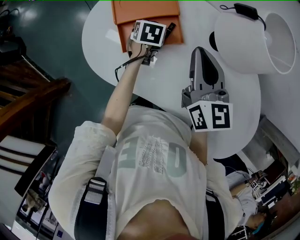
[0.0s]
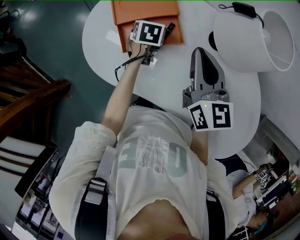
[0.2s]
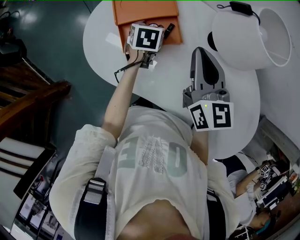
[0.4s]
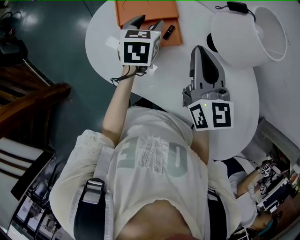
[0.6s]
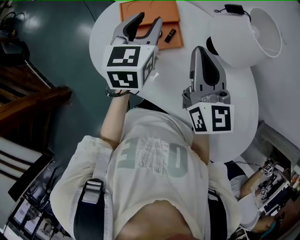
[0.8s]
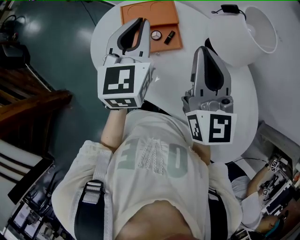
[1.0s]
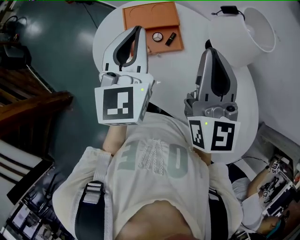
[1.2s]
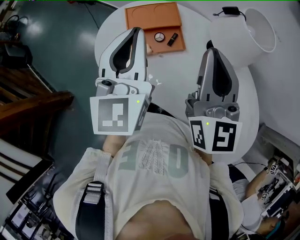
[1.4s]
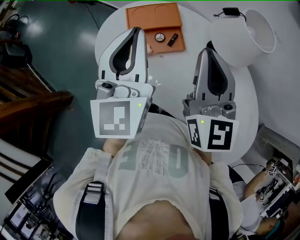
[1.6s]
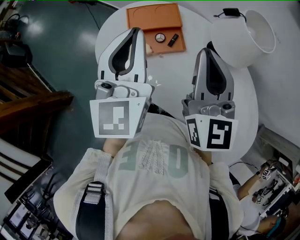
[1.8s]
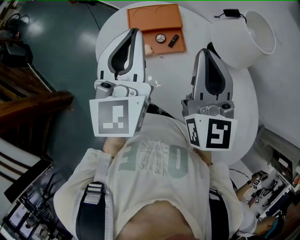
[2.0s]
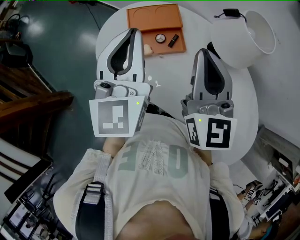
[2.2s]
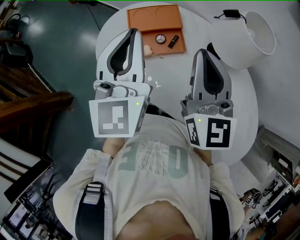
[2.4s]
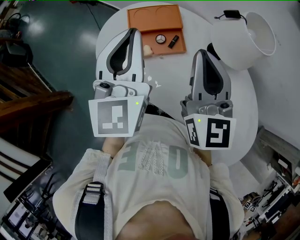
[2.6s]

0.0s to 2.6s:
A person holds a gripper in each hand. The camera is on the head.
0.0s to 1.2s: The right gripper heads upward and backward, covering approximately 15 cm. The left gripper is displaced upward by roughly 35 cm, points its fingers approximately 50 degrees further upward, and closes.
1.2s to 2.6s: The grippers move only a little.

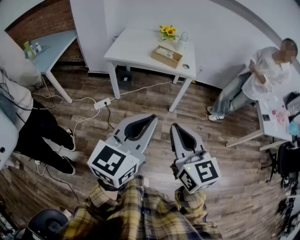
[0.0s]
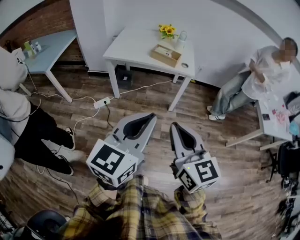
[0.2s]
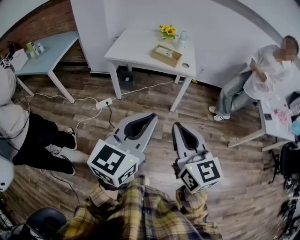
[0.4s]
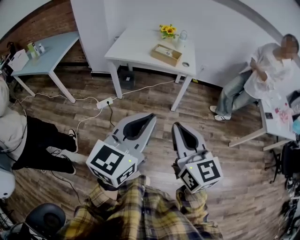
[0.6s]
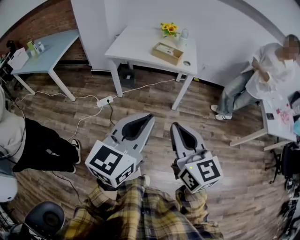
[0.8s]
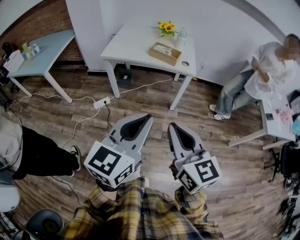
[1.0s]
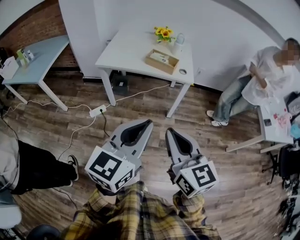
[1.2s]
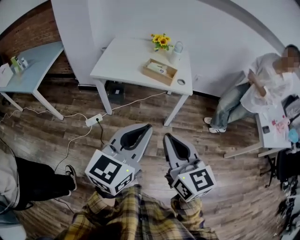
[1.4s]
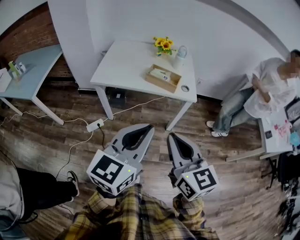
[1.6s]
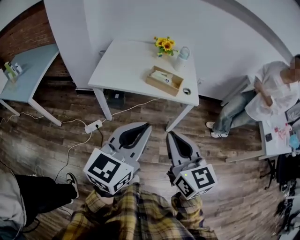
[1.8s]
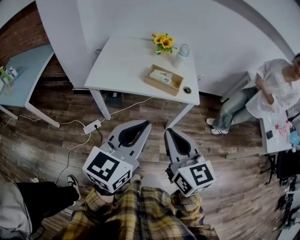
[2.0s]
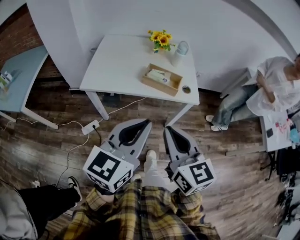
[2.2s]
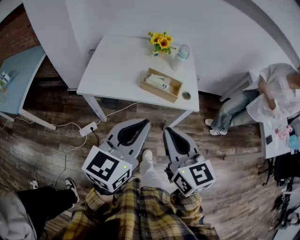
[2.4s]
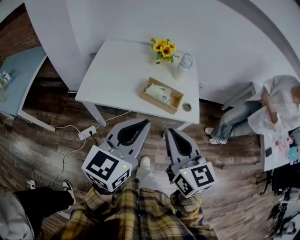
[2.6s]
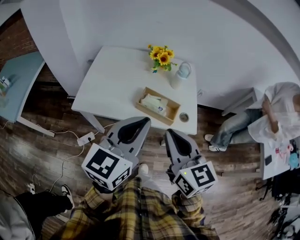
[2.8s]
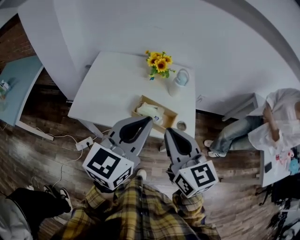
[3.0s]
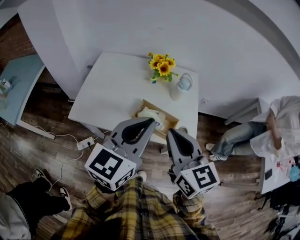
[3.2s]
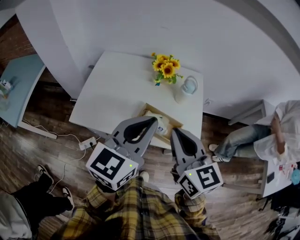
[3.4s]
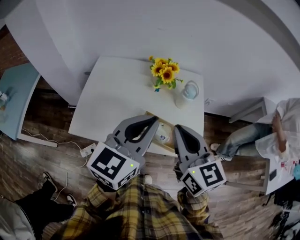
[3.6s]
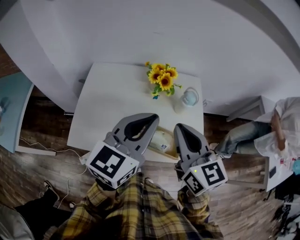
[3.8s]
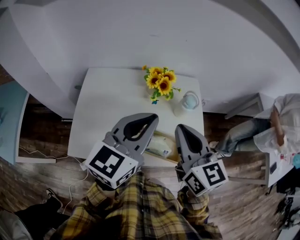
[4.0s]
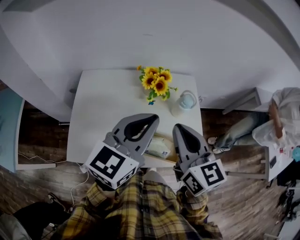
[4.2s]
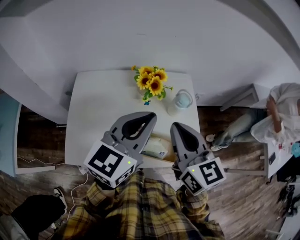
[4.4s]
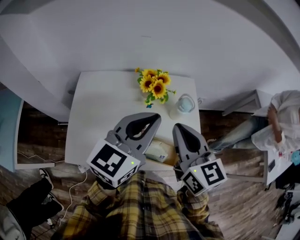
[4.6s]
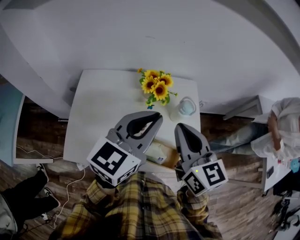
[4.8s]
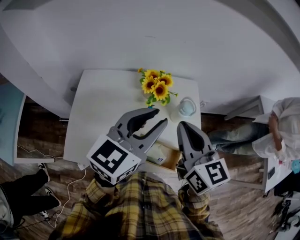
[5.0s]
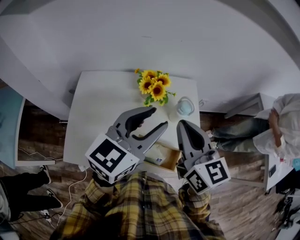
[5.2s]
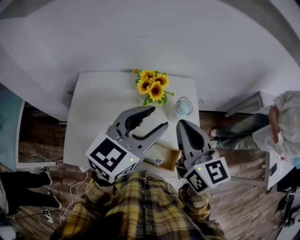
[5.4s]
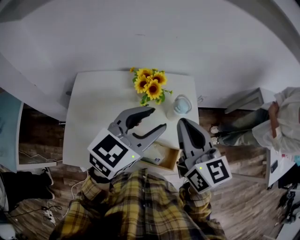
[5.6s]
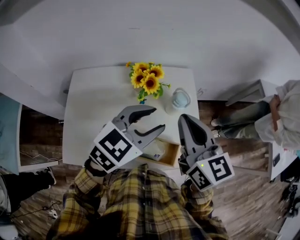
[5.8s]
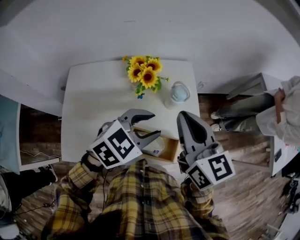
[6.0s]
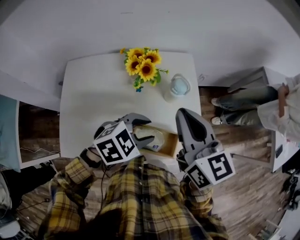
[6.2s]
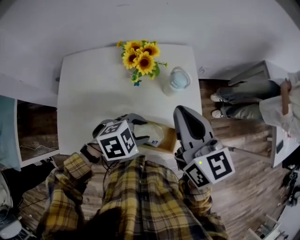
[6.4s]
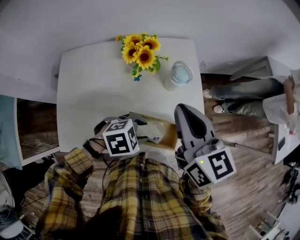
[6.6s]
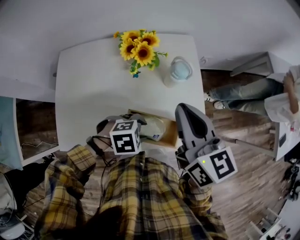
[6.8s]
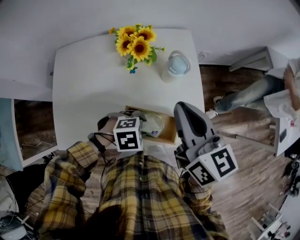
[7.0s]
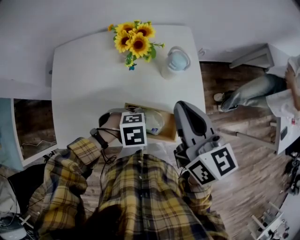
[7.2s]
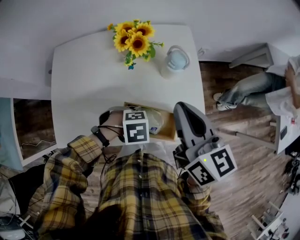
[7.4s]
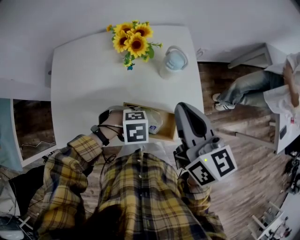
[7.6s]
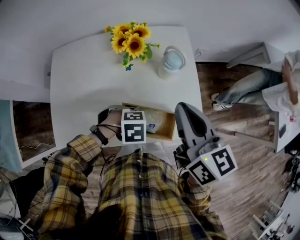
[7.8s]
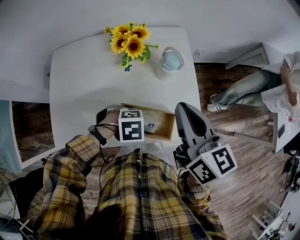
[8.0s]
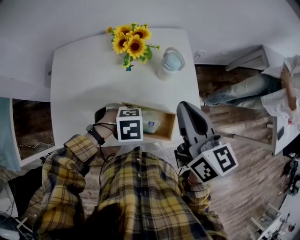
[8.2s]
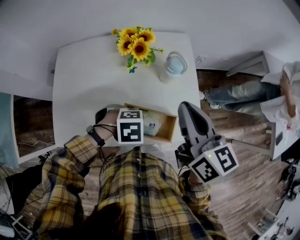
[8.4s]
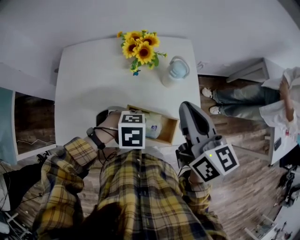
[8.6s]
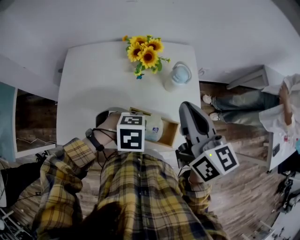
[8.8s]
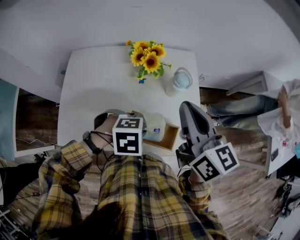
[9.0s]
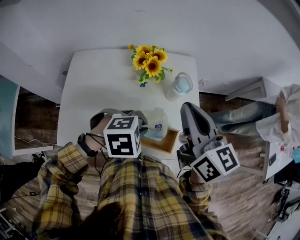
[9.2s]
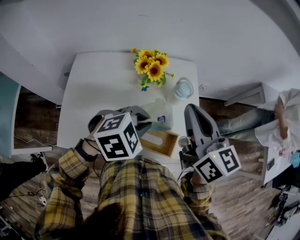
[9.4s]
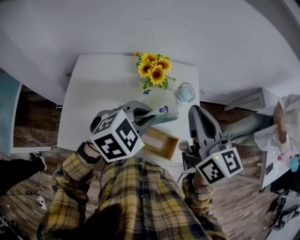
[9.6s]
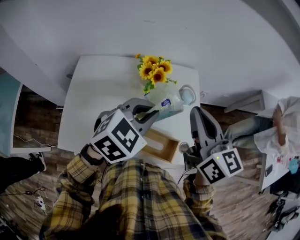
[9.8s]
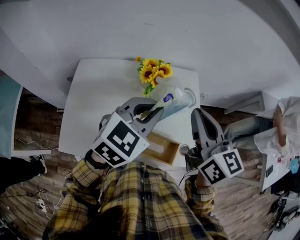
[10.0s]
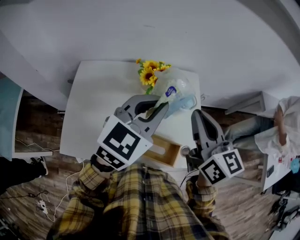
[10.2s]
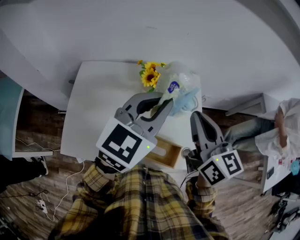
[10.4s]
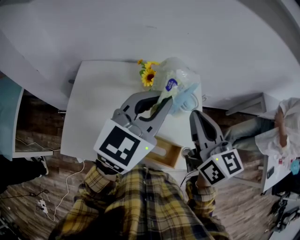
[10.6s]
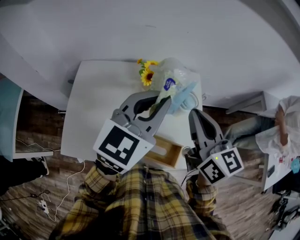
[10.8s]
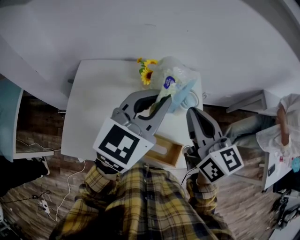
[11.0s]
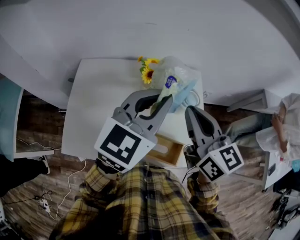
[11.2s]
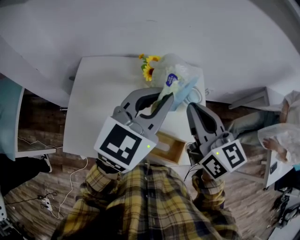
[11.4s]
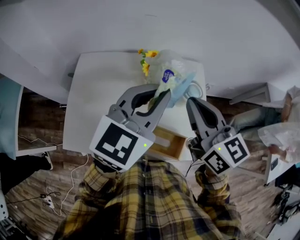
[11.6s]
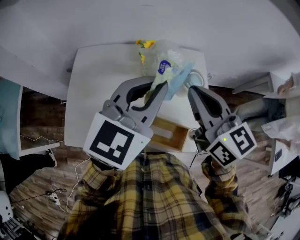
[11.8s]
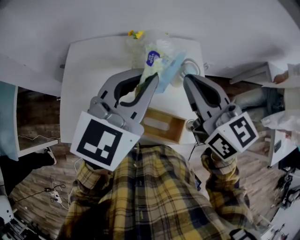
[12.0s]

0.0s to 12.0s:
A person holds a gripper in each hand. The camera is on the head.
0.0s to 1.6s: The two grippers go about 20 cm forward.
1.6s to 3.0s: The two grippers go about 30 cm forward.
3.0s to 4.4s: Both grippers move forward, roughly 20 cm.
4.4s to 6.0s: The right gripper moves forward and to the right, about 5 cm. Meanwhile the left gripper heads downward and to the right, covering approximately 15 cm, tips its fingers downward by approximately 30 degrees, and opens its fingers.
6.0s to 7.6s: The right gripper goes some 5 cm downward, while the left gripper travels downward by approximately 20 cm, and tilts its fingers roughly 40 degrees downward.
7.6s to 9.0s: The right gripper moves upward, some 5 cm, while the left gripper moves upward, some 10 cm, and closes its fingers.
9.0s to 10.4s: The left gripper shifts approximately 25 cm upward, and tilts its fingers approximately 60 degrees upward.
10.4s to 12.0s: The grippers make only small movements.

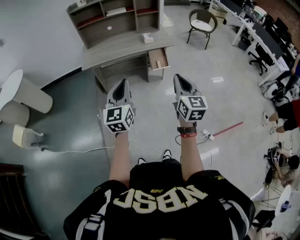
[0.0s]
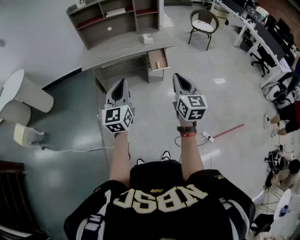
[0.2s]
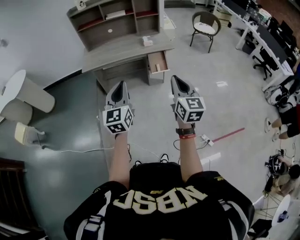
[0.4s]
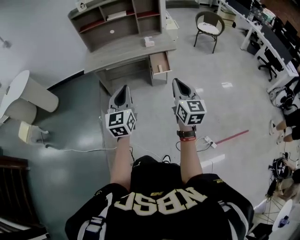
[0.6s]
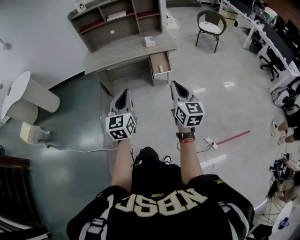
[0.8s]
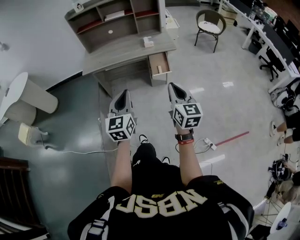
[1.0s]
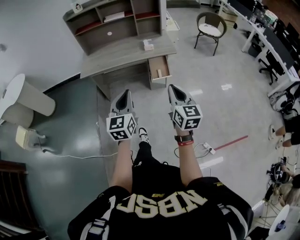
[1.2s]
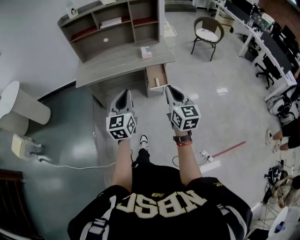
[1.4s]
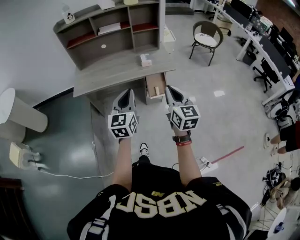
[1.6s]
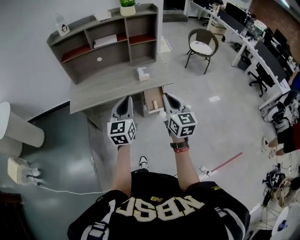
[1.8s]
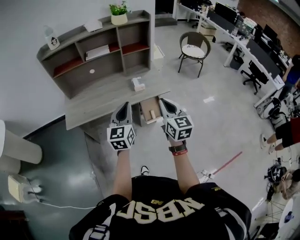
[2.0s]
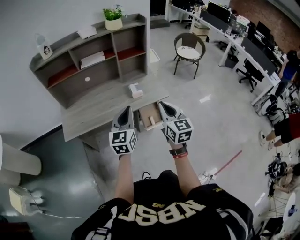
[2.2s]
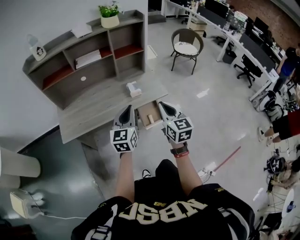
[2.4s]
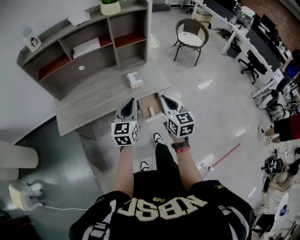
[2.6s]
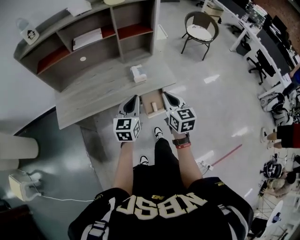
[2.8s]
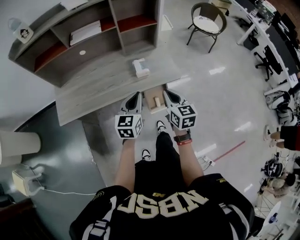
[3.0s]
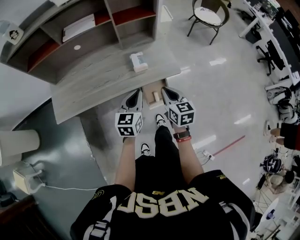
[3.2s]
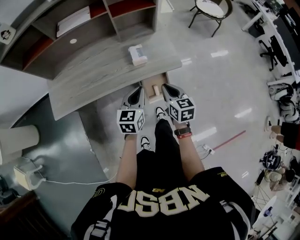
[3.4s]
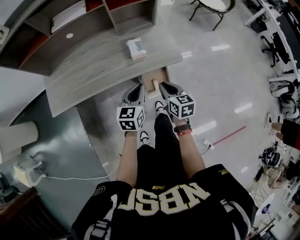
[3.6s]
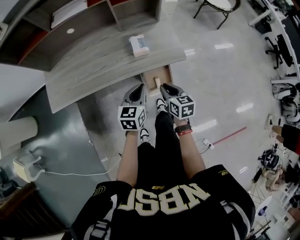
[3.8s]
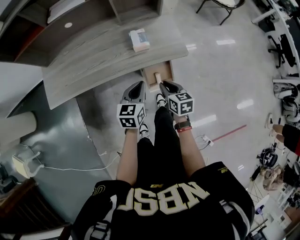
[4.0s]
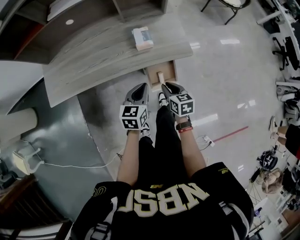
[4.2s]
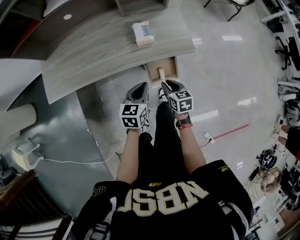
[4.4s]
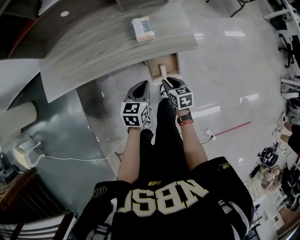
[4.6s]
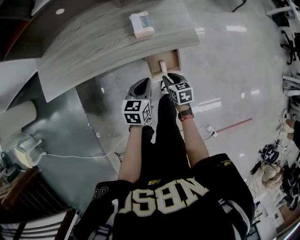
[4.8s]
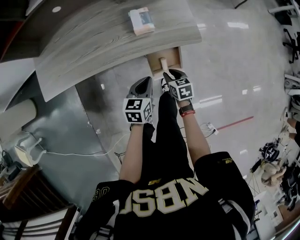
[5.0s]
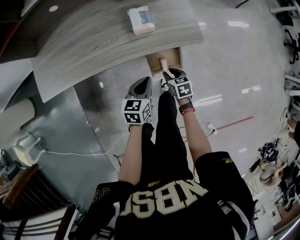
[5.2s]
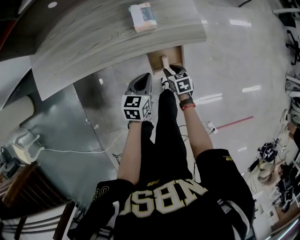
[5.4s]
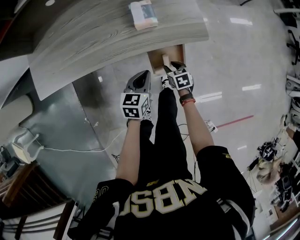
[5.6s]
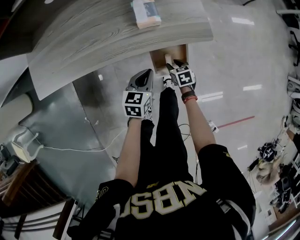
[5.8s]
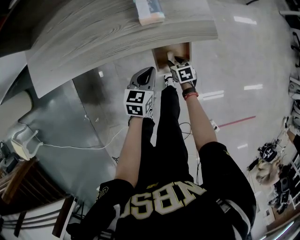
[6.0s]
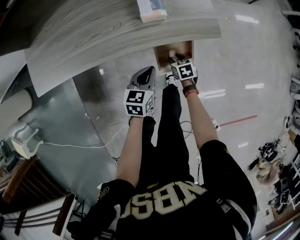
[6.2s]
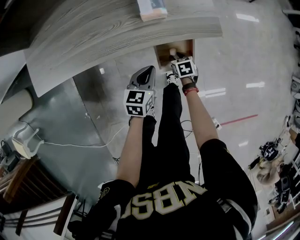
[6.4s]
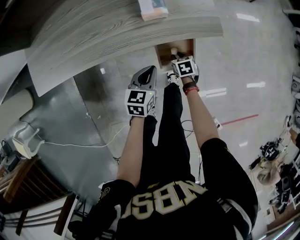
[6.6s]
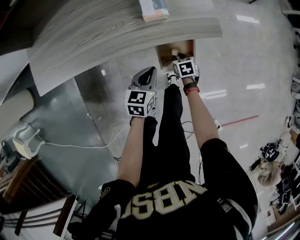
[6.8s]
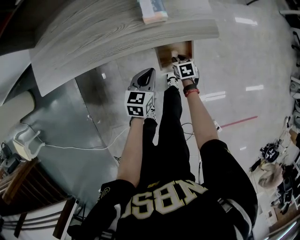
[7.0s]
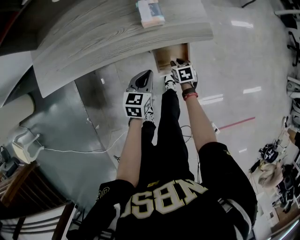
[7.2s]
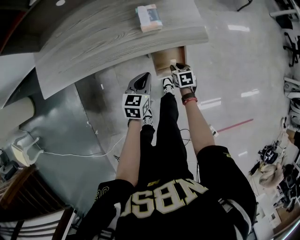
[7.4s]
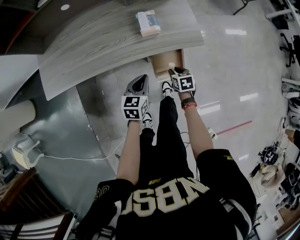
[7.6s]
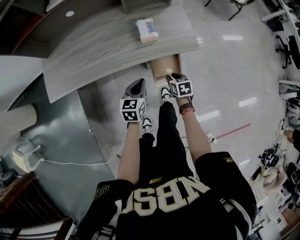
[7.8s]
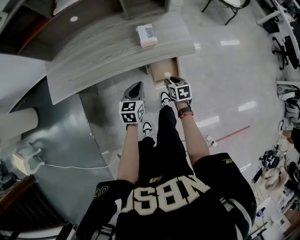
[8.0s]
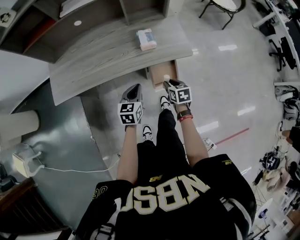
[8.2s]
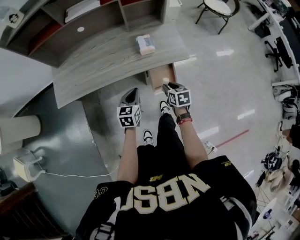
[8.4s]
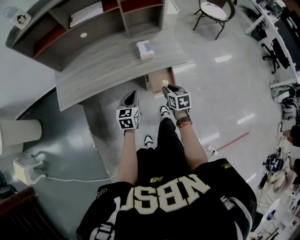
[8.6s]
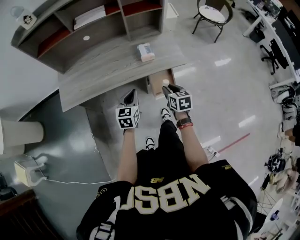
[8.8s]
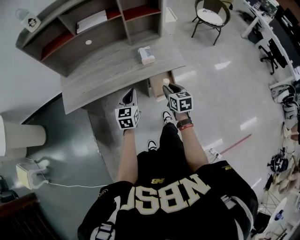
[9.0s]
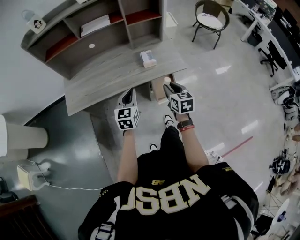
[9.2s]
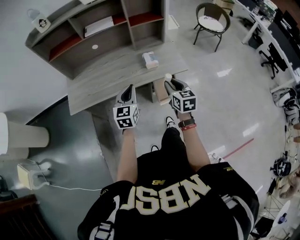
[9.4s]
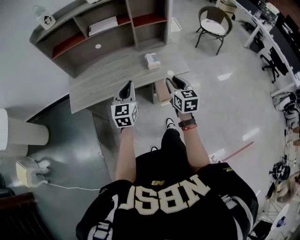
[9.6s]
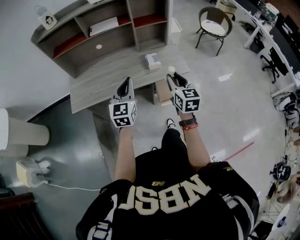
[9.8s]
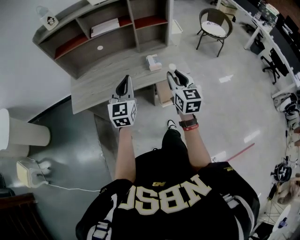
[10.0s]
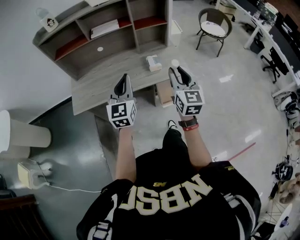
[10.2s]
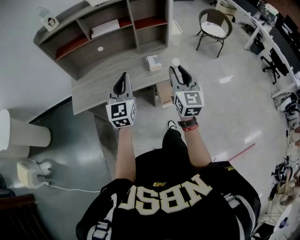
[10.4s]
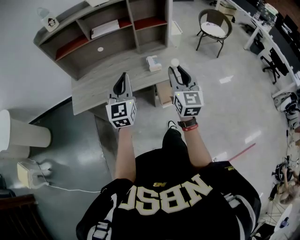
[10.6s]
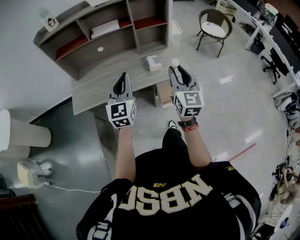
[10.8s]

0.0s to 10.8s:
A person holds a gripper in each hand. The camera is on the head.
0.0s to 1.6s: The two grippers go approximately 25 cm forward.
1.6s to 3.0s: Both grippers travel together forward and downward, some 30 cm.
3.0s to 4.6s: The grippers both shift downward by approximately 20 cm. The right gripper swivels approximately 30 degrees, and opens its fingers. The left gripper turns by some 20 degrees.
4.6s to 6.2s: The right gripper moves downward, about 20 cm. Meanwhile the left gripper travels downward by some 10 cm.
6.2s to 7.8s: The right gripper is displaced upward by about 15 cm, while the left gripper moves upward, roughly 10 cm.
7.8s to 9.2s: The left gripper travels upward and to the left by approximately 20 cm, and rotates about 20 degrees, while the right gripper moves upward, some 25 cm, and rotates roughly 30 degrees.
9.2s to 10.8s: Both grippers move upward, about 20 cm. The right gripper tilts its fingers approximately 30 degrees upward. Meanwhile the left gripper turns by roughly 20 degrees.
